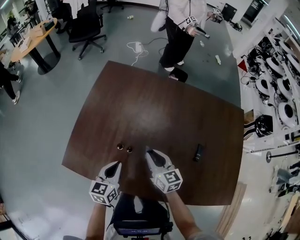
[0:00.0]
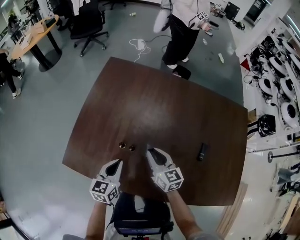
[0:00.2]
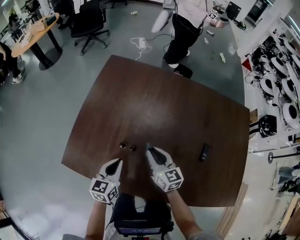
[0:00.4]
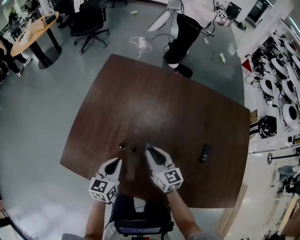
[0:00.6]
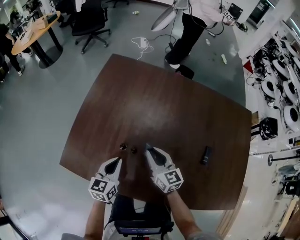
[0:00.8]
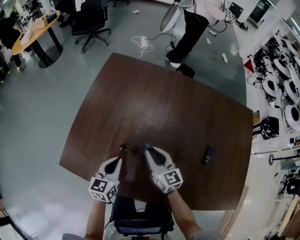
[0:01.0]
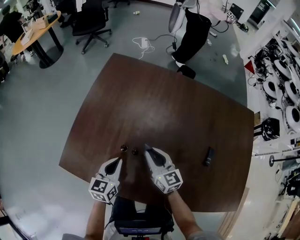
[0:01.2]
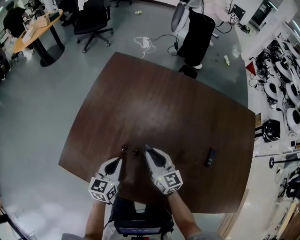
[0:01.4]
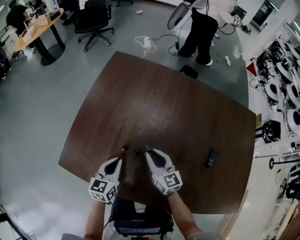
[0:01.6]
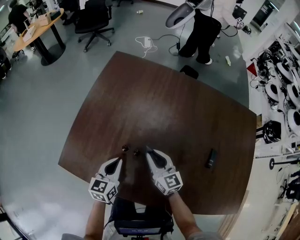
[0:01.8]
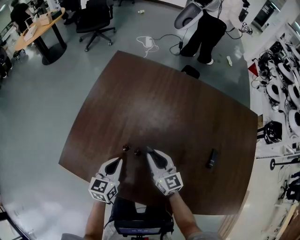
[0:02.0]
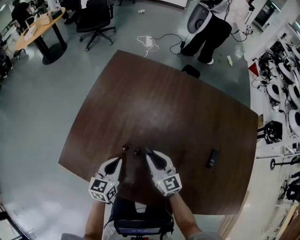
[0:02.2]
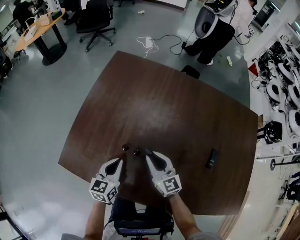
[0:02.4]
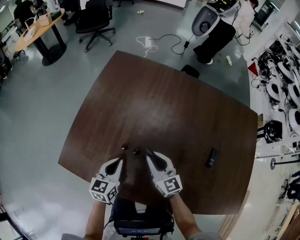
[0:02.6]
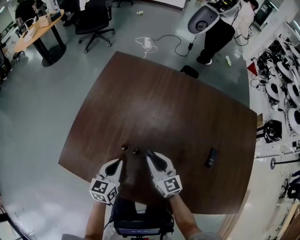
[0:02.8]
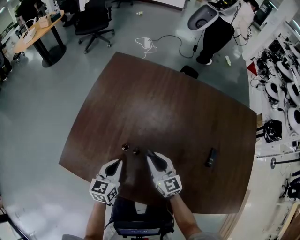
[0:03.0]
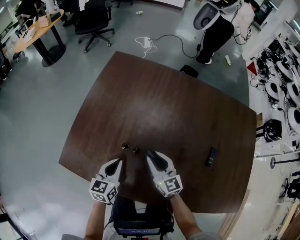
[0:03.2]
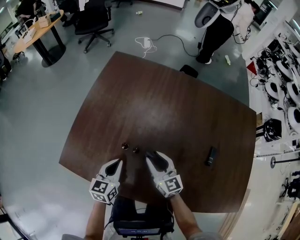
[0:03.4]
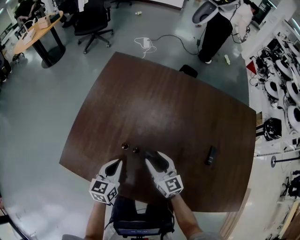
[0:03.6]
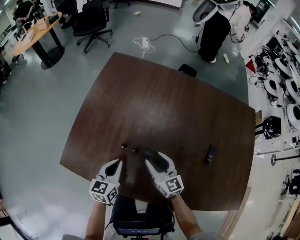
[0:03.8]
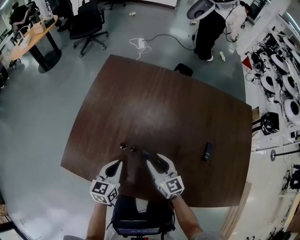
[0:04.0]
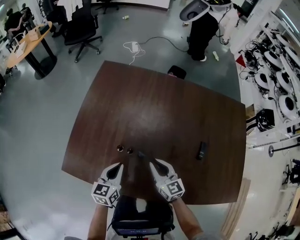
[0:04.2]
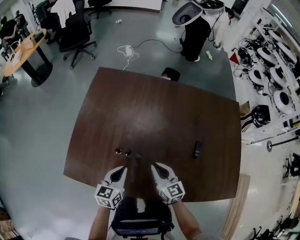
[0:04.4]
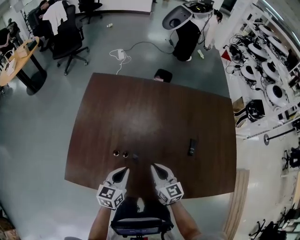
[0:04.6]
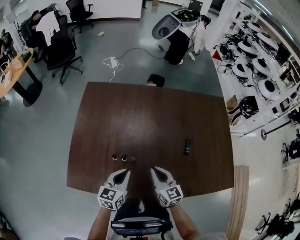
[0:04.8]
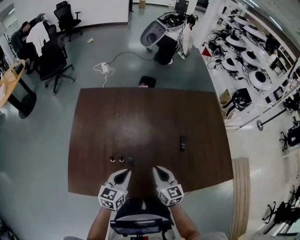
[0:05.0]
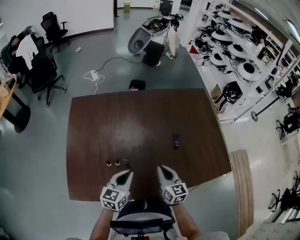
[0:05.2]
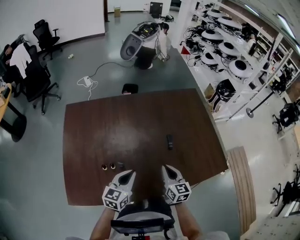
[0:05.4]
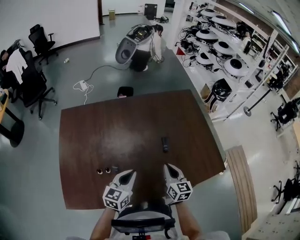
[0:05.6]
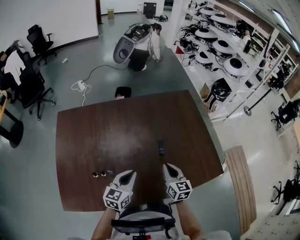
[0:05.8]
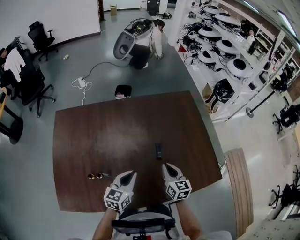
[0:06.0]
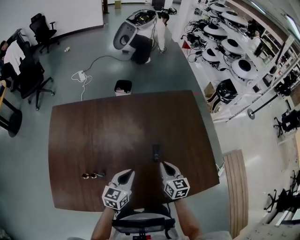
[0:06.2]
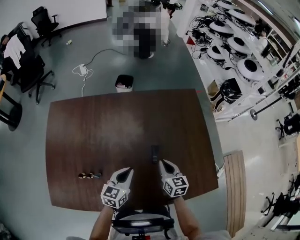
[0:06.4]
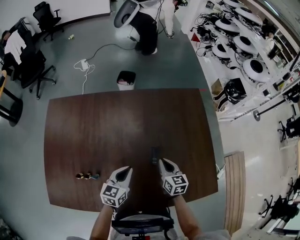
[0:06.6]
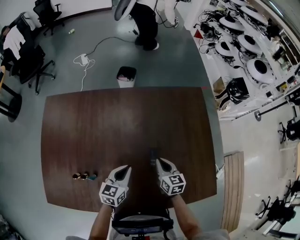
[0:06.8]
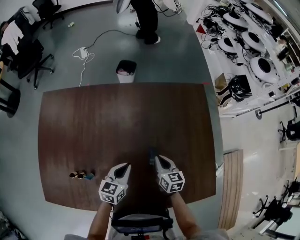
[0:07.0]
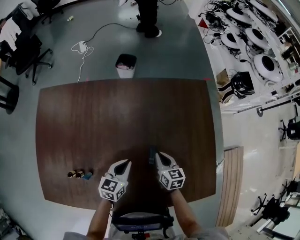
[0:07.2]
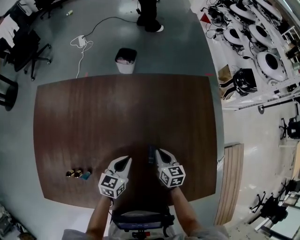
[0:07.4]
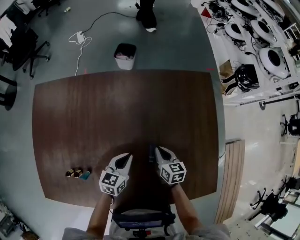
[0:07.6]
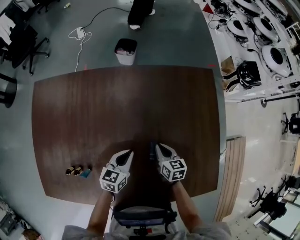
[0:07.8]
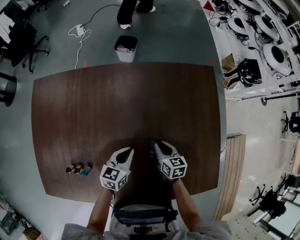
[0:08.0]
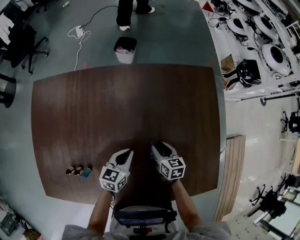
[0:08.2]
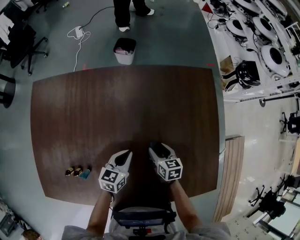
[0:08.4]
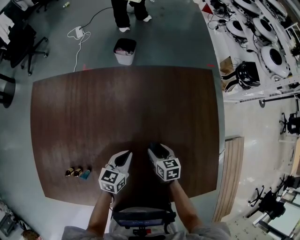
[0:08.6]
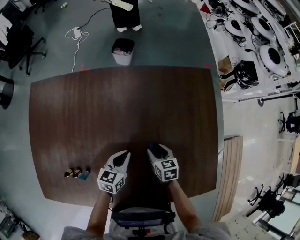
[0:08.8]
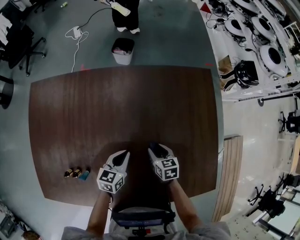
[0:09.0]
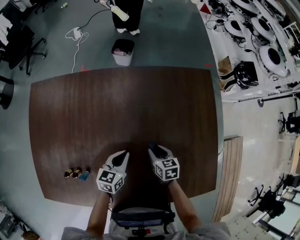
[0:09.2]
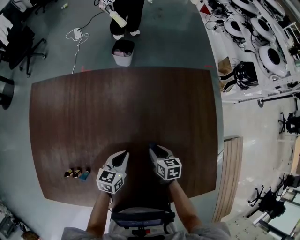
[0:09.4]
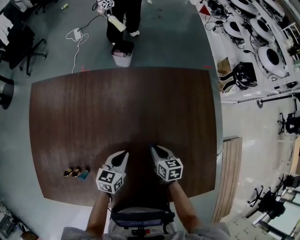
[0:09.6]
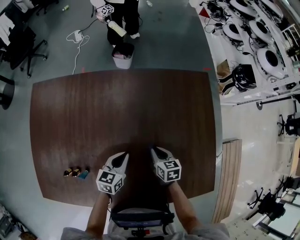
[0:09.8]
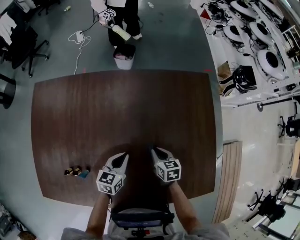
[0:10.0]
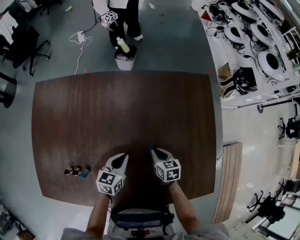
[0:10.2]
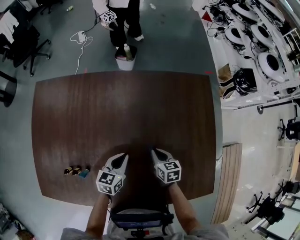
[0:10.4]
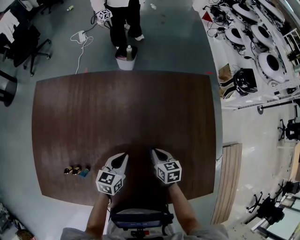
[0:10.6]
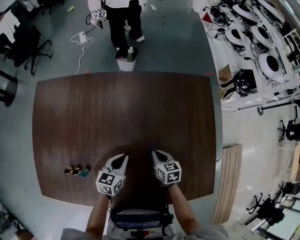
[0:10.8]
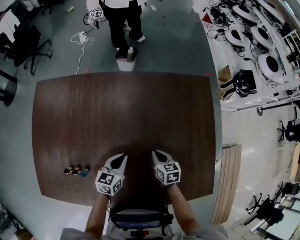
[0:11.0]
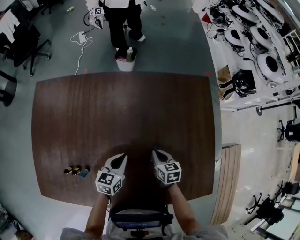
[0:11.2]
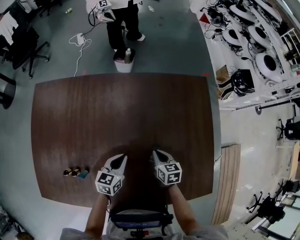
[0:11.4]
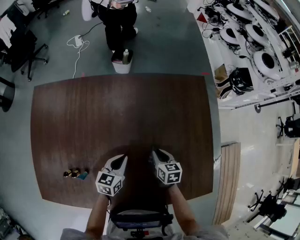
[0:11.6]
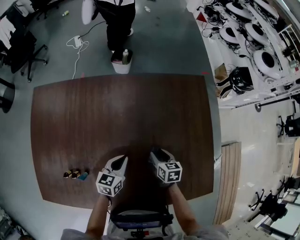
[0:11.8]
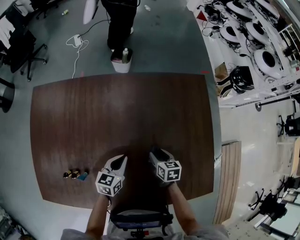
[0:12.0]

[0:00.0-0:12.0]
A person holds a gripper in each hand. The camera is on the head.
0:00.0 to 0:01.6: Both grippers travel together downward, some 5 cm.
0:01.6 to 0:03.0: The grippers make only small movements.
0:03.0 to 0:04.4: The left gripper is displaced upward by some 5 cm, while the right gripper travels backward by roughly 5 cm, and opens and closes again.
0:04.4 to 0:06.0: The right gripper changes place by some 25 cm, and turns by some 30 degrees, while the left gripper ends up roughly 20 cm from where it was, and turns by some 30 degrees.
0:06.0 to 0:07.6: The left gripper heads forward and downward, covering roughly 15 cm, while the right gripper travels downward and forward by roughly 20 cm, and turns by roughly 20 degrees.
0:07.6 to 0:09.0: The right gripper opens.
0:09.0 to 0:10.4: The right gripper closes its fingers.
0:10.4 to 0:12.0: The right gripper opens.

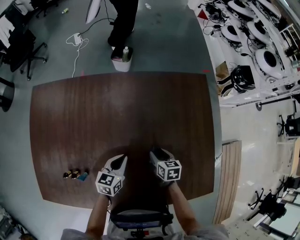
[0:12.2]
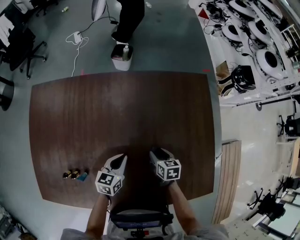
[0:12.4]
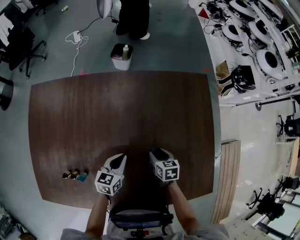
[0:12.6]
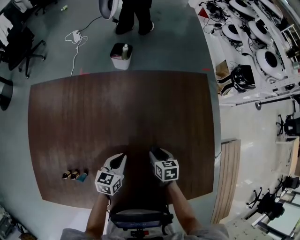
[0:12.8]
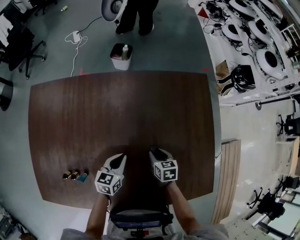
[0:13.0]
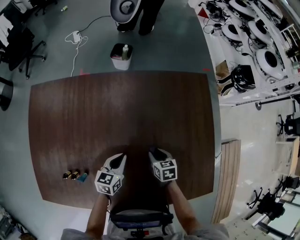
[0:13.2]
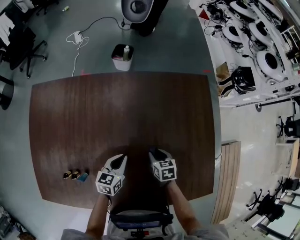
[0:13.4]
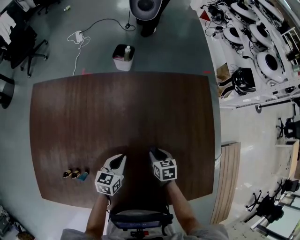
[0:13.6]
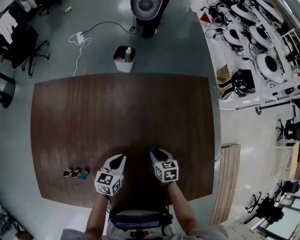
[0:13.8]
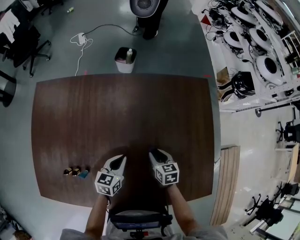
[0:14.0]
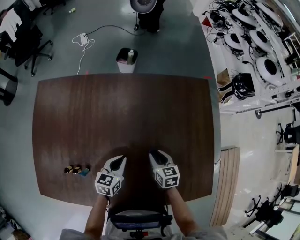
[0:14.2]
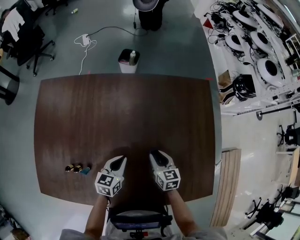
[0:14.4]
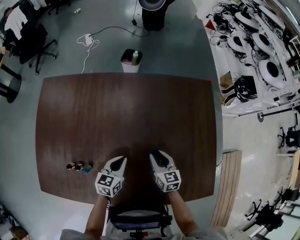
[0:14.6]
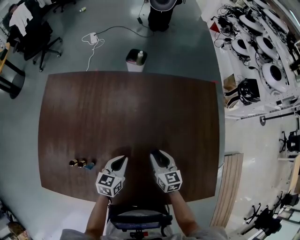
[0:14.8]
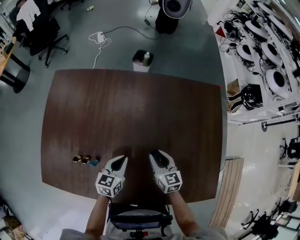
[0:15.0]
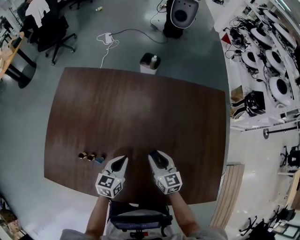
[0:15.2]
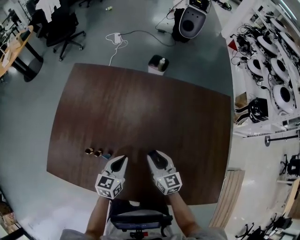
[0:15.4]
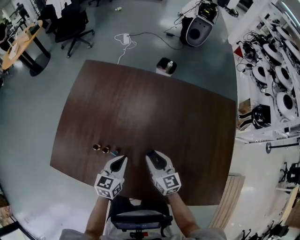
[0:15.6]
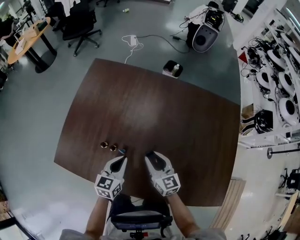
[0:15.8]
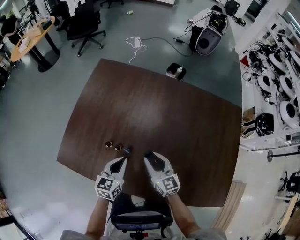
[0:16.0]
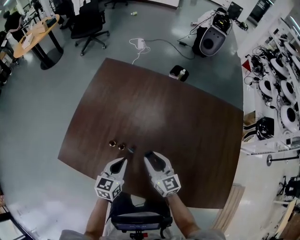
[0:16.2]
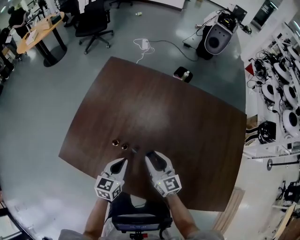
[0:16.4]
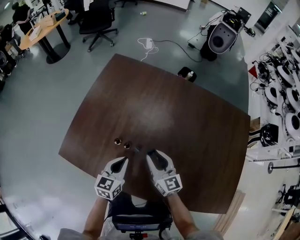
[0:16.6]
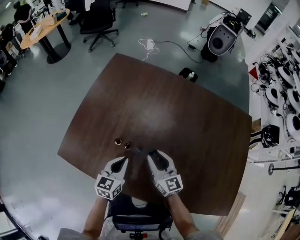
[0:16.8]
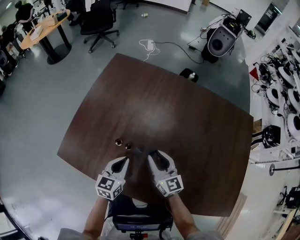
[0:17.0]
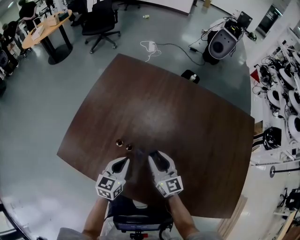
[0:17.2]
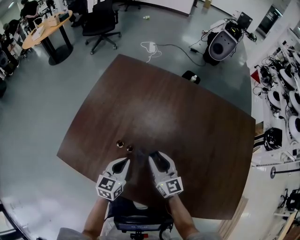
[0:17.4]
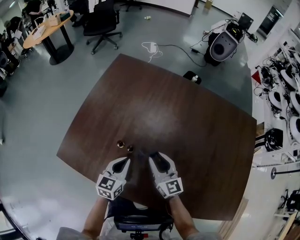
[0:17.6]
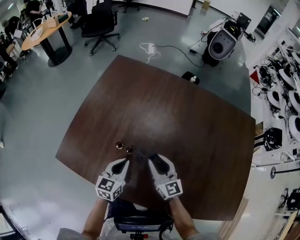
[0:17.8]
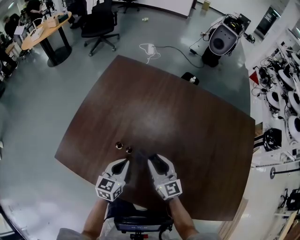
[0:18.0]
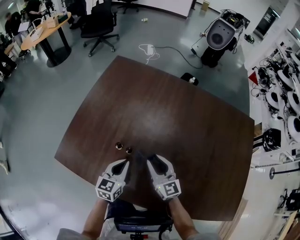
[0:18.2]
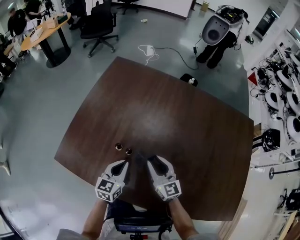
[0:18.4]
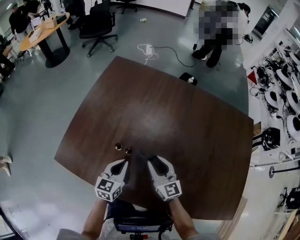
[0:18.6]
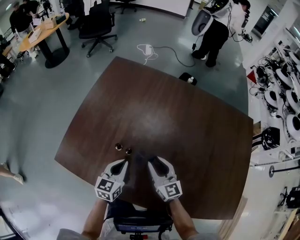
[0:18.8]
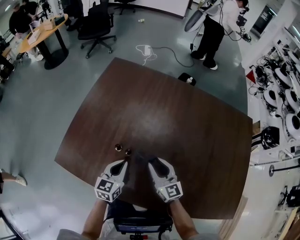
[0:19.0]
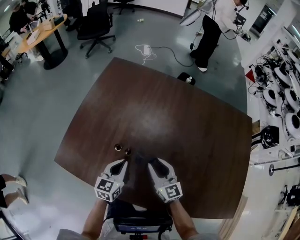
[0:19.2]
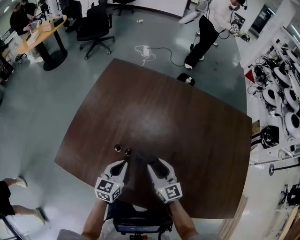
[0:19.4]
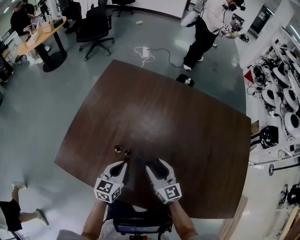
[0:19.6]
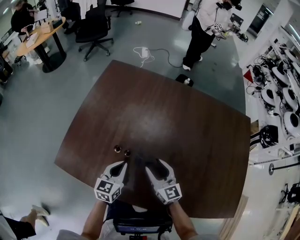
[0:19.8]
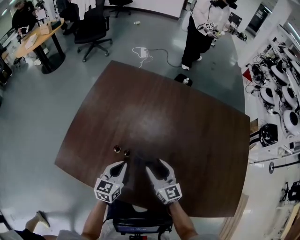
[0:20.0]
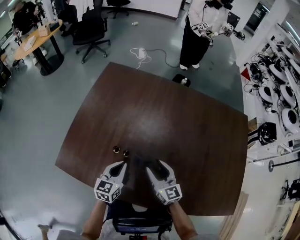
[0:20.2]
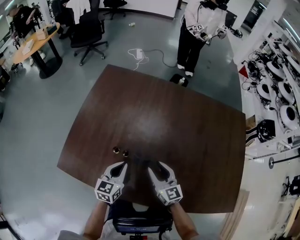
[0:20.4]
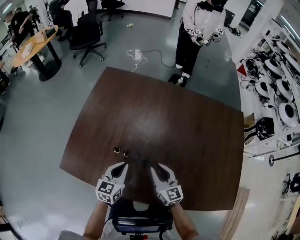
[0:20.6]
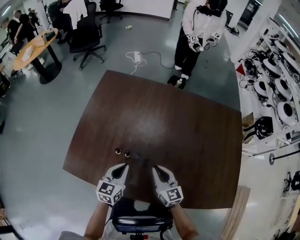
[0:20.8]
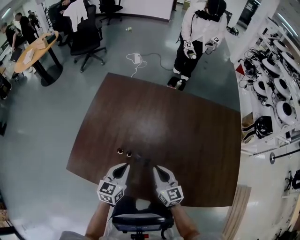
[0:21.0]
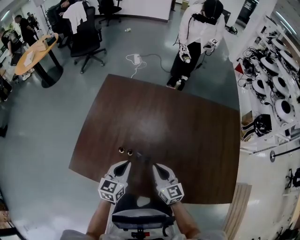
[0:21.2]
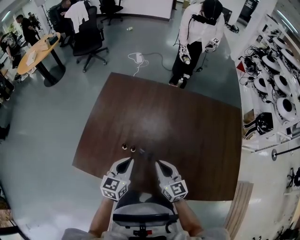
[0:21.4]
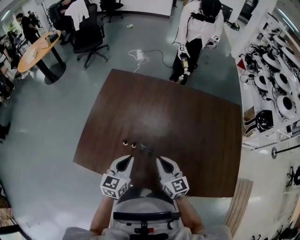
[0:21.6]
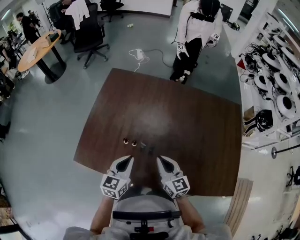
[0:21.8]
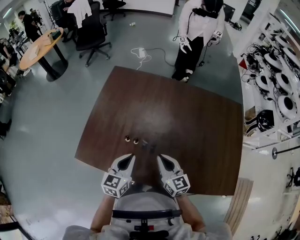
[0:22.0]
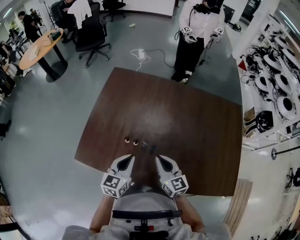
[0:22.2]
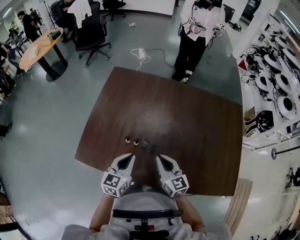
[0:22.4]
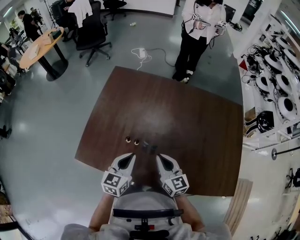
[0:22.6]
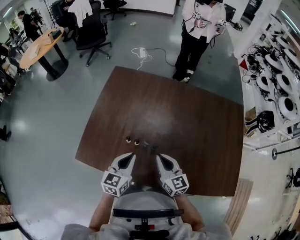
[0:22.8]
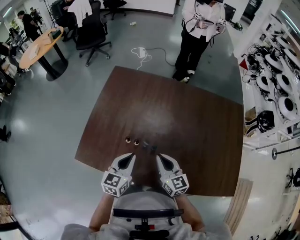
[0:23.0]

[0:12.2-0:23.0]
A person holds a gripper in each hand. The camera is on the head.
0:12.2 to 0:13.8: The grippers make only small movements.
0:13.8 to 0:15.2: The right gripper moves to the left and upward, some 15 cm, and tips its fingers upward by approximately 30 degrees, while the left gripper moves to the left and backward, approximately 10 cm.
0:15.2 to 0:16.8: Both grippers travel together to the left, approximately 20 cm. The right gripper rotates approximately 20 degrees.
0:16.8 to 0:18.4: The grippers move only a little.
0:18.4 to 0:20.0: The right gripper opens its fingers.
0:20.0 to 0:21.4: Both grippers travel together upward, approximately 15 cm. The right gripper closes its fingers.
0:21.4 to 0:23.0: There are only small adjustments of the grippers.

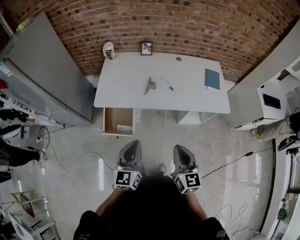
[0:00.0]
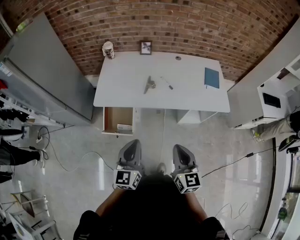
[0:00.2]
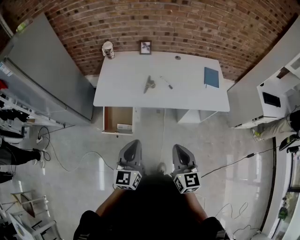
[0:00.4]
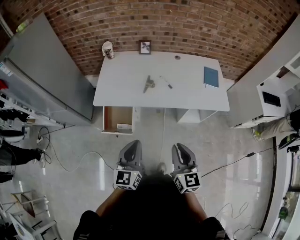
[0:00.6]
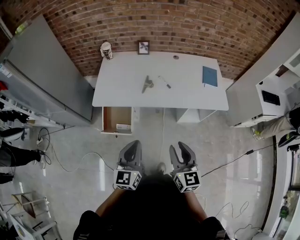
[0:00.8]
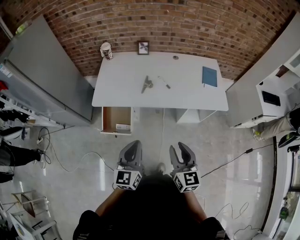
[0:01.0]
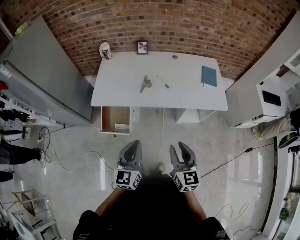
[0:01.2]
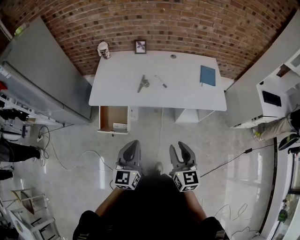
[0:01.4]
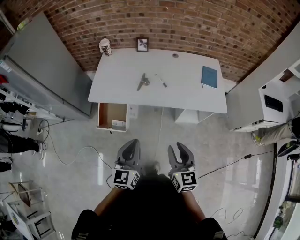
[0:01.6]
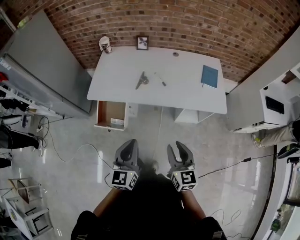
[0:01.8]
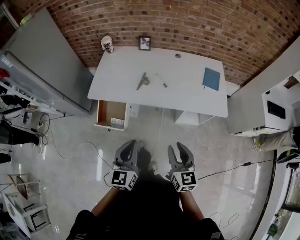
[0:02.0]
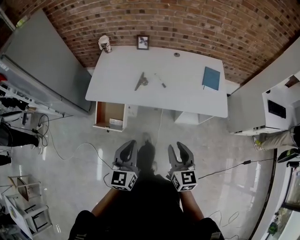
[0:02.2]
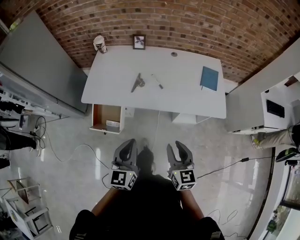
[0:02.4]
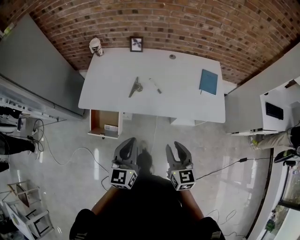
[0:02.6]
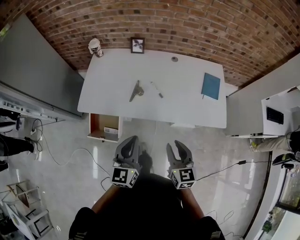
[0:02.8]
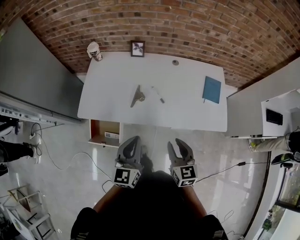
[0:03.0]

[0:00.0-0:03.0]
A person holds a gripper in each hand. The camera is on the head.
0:00.0 to 0:01.6: The grippers both shift to the right by approximately 10 cm. The right gripper opens.
0:01.6 to 0:03.0: Both grippers move forward, approximately 20 cm.
